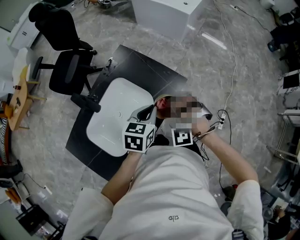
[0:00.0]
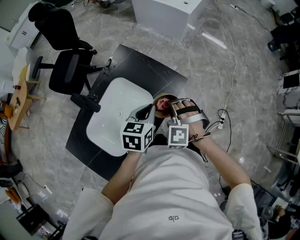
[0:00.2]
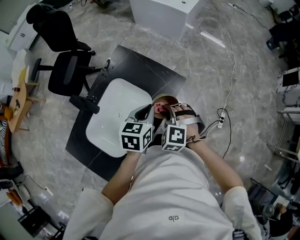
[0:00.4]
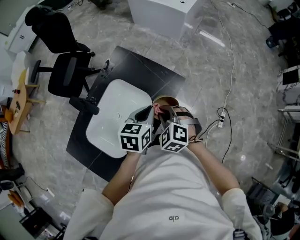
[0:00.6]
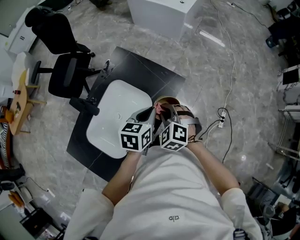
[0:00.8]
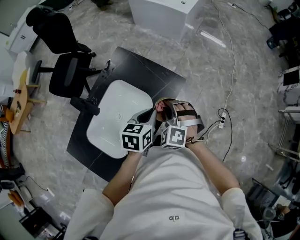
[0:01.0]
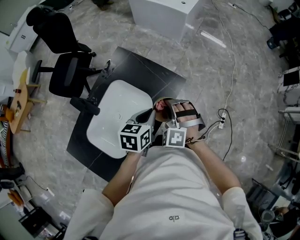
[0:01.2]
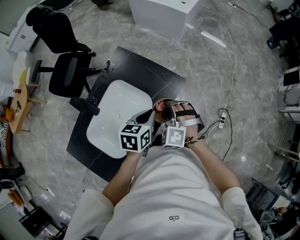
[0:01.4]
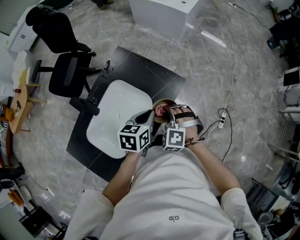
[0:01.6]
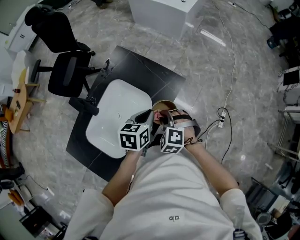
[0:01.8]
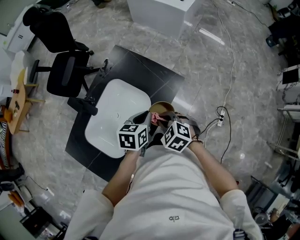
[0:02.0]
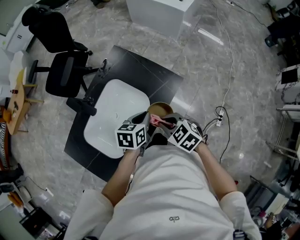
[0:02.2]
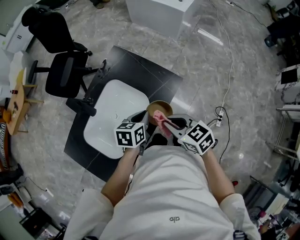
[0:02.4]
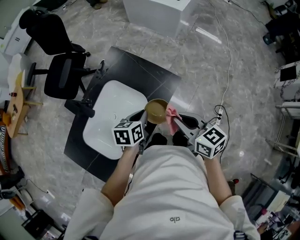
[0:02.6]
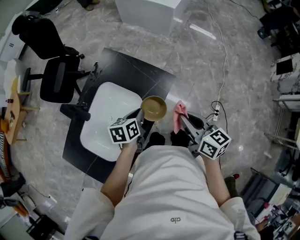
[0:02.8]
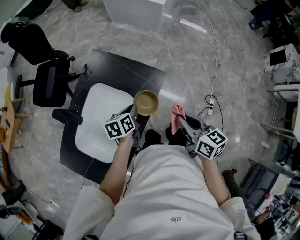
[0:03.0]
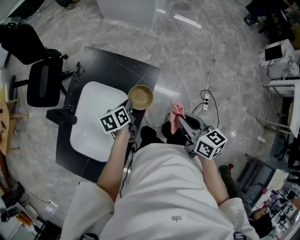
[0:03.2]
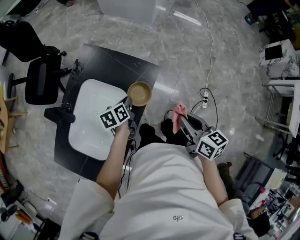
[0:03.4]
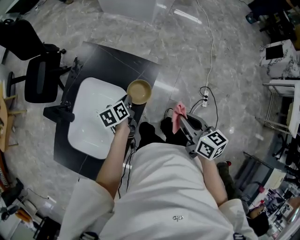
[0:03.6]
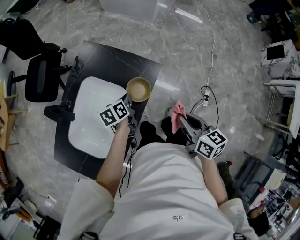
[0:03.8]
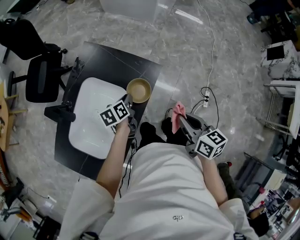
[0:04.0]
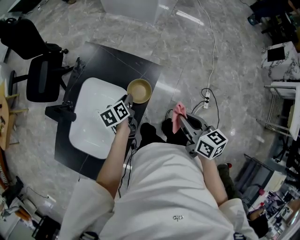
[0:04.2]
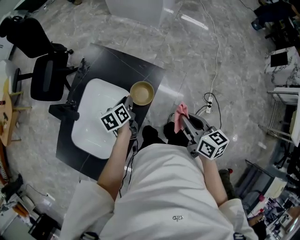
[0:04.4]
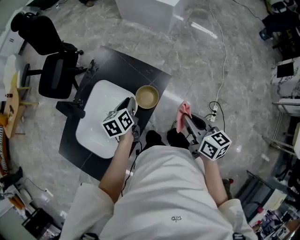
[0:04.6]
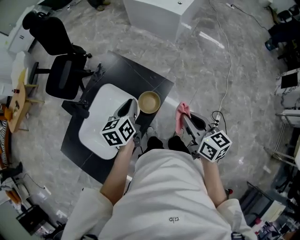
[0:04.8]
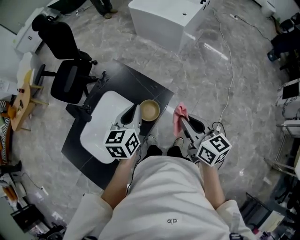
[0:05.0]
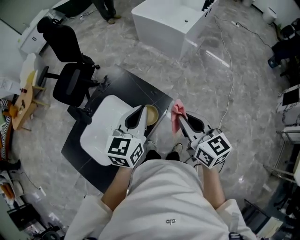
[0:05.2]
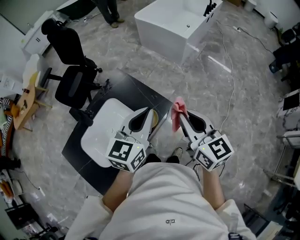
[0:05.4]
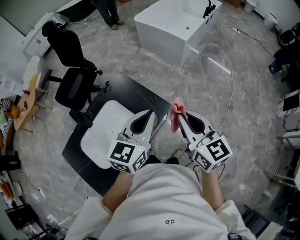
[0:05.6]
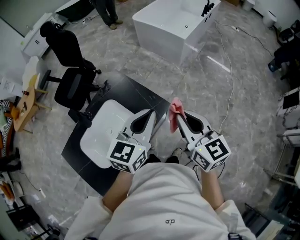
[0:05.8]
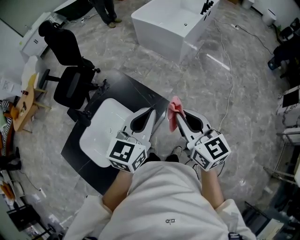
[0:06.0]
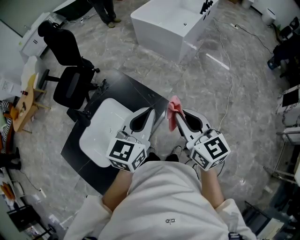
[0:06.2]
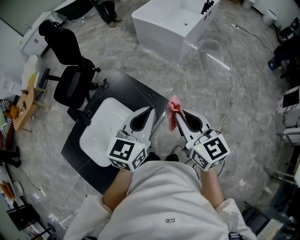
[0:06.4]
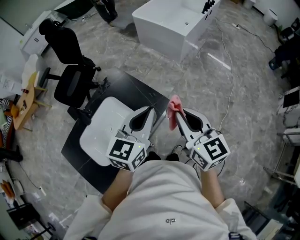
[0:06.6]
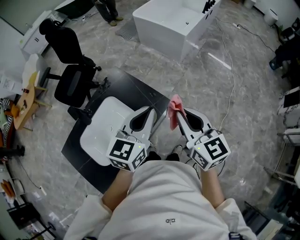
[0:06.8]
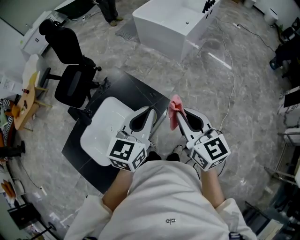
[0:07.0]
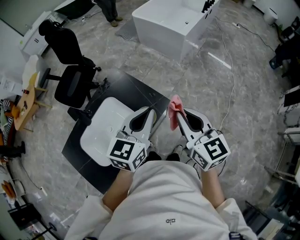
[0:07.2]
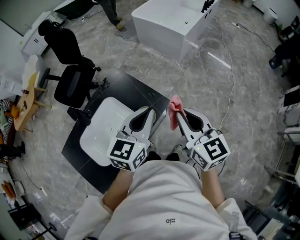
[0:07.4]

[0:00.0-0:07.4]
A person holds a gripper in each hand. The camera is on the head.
0:00.0 to 0:01.4: The right gripper rotates approximately 30 degrees.
0:01.4 to 0:03.0: The left gripper is displaced downward by roughly 10 cm. The right gripper ends up some 15 cm from where it was, and twists approximately 90 degrees clockwise, seen from behind.
0:03.0 to 0:04.4: The grippers stay close to where they were, moving slightly.
0:04.4 to 0:06.0: The left gripper is displaced upward and to the right by about 35 cm, and tilts its fingers some 30 degrees upward; the right gripper shifts approximately 20 cm upward and forward, and rotates approximately 30 degrees.
0:06.0 to 0:07.4: The grippers make only small movements.

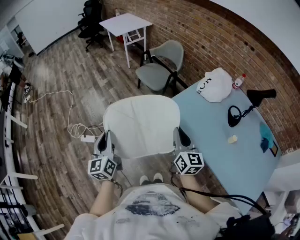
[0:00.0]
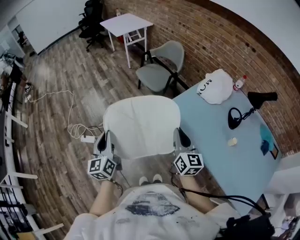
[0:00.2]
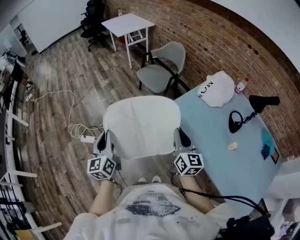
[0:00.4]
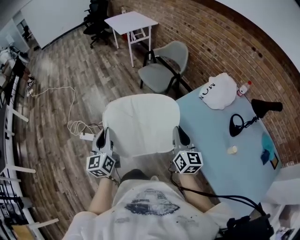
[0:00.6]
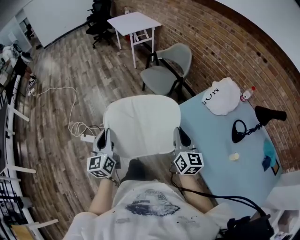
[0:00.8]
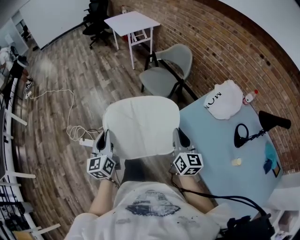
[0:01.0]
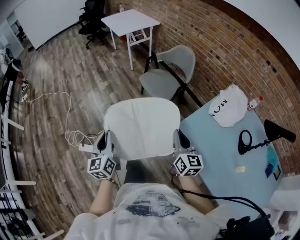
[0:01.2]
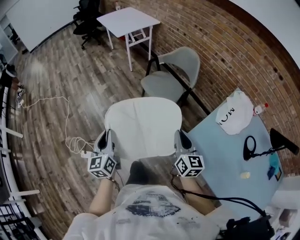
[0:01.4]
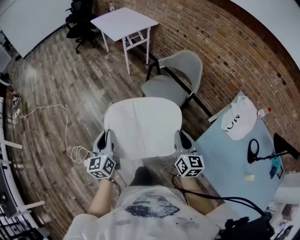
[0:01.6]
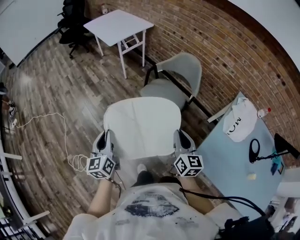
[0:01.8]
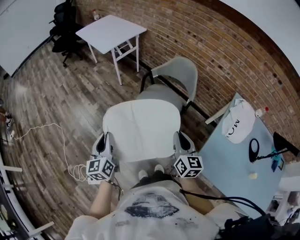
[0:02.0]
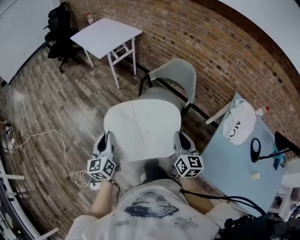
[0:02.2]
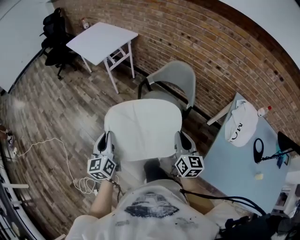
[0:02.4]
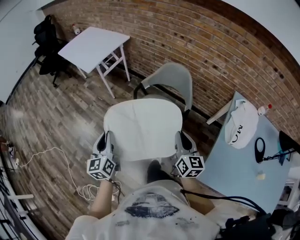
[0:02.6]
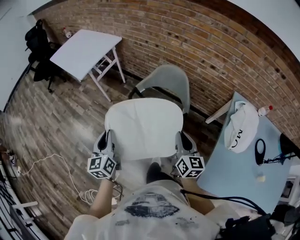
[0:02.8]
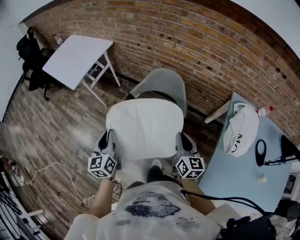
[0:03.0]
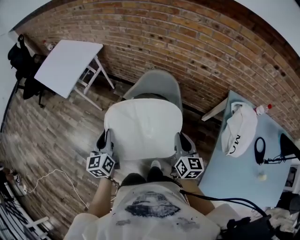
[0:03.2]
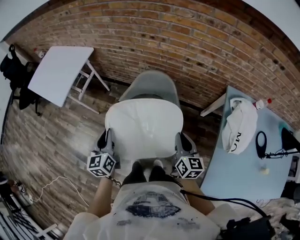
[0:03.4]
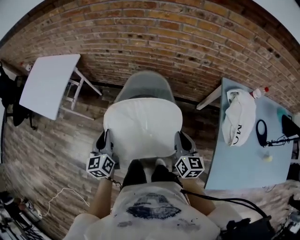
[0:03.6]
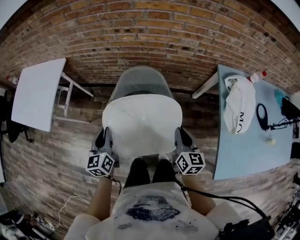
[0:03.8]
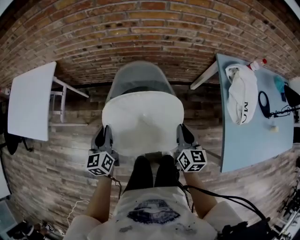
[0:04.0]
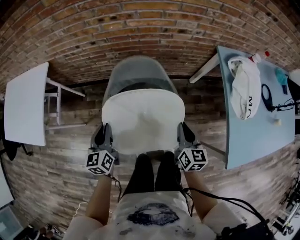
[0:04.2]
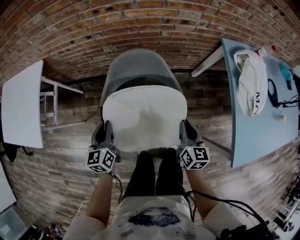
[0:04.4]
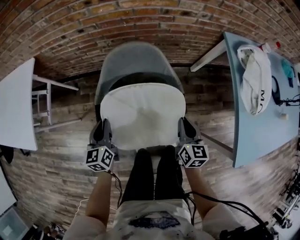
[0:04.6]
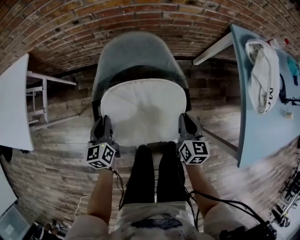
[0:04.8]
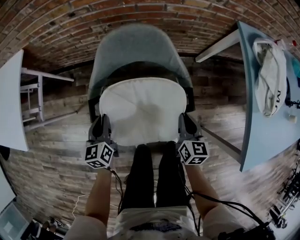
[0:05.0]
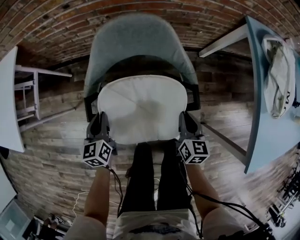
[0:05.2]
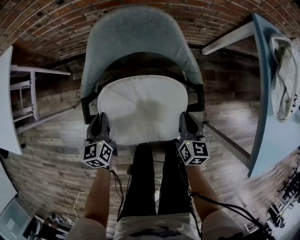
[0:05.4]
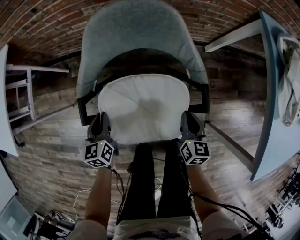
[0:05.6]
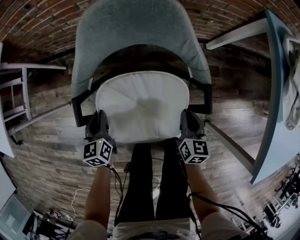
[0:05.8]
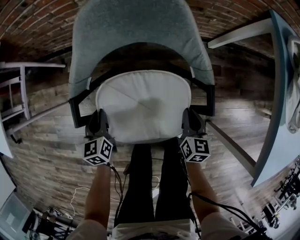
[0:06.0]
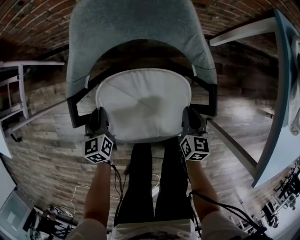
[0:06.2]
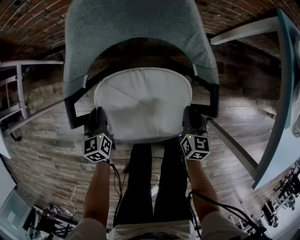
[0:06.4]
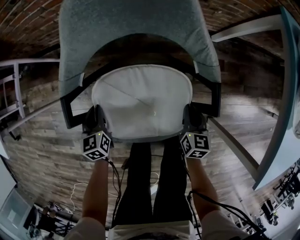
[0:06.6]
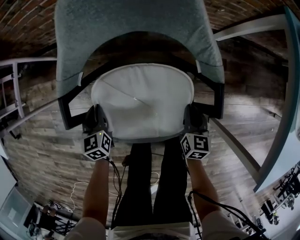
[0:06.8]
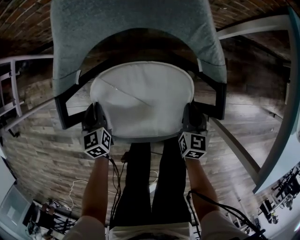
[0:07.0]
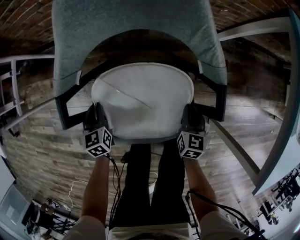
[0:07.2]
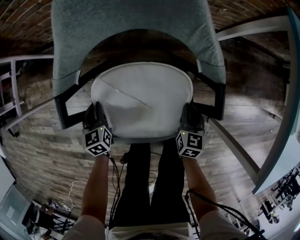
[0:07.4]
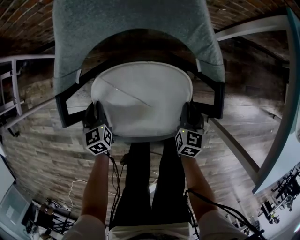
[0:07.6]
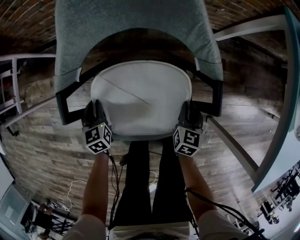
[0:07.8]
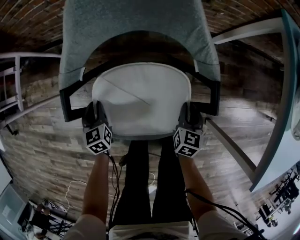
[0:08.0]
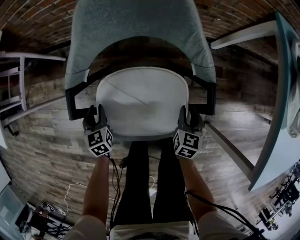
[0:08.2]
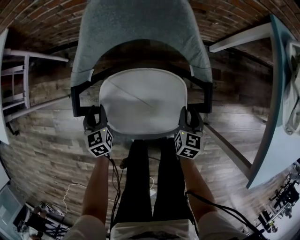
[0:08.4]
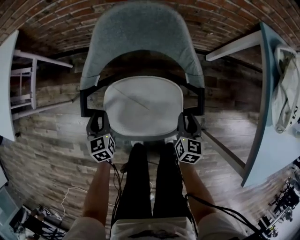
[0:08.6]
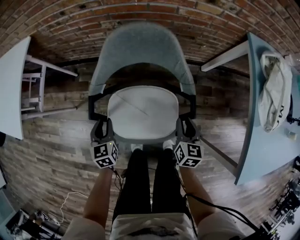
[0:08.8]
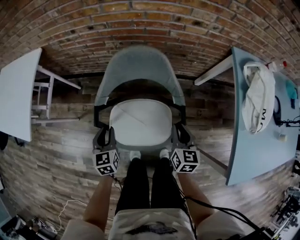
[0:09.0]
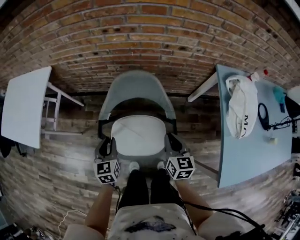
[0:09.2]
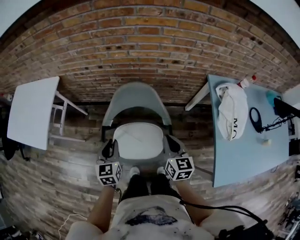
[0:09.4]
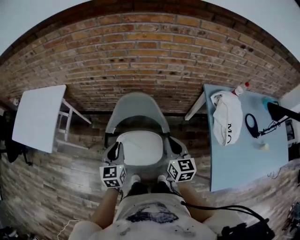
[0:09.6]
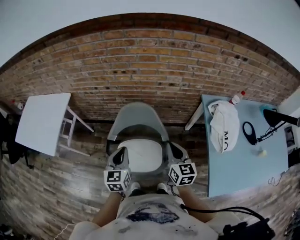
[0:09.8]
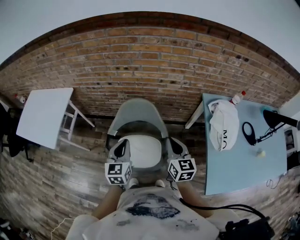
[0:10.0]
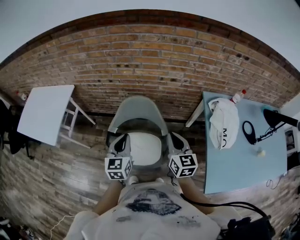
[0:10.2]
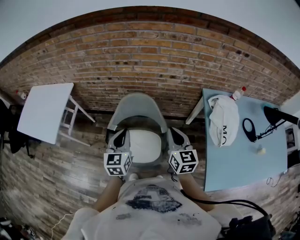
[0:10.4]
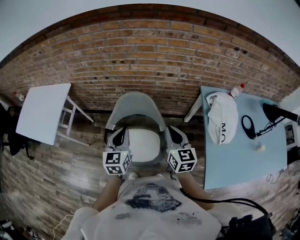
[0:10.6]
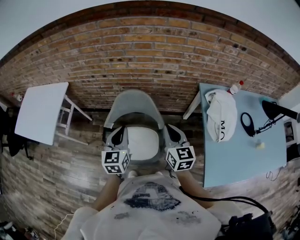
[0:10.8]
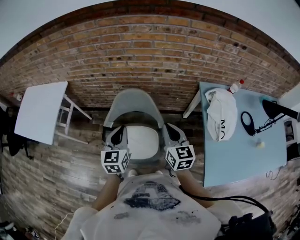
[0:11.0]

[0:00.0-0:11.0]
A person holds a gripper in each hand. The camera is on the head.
0:00.0 to 0:01.6: The two grippers travel together, forward, approximately 40 cm.
0:01.6 to 0:03.2: The right gripper shifts by approximately 40 cm, and rotates roughly 30 degrees. The left gripper moves some 50 cm, and swivels some 30 degrees.
0:03.2 to 0:04.8: Both grippers travel together downward, approximately 25 cm. The right gripper changes its angle by some 30 degrees. Meanwhile the left gripper turns by approximately 30 degrees.
0:04.8 to 0:06.2: Both grippers travel together downward, roughly 20 cm.
0:06.2 to 0:07.8: The grippers both shift downward by approximately 5 cm.
0:07.8 to 0:09.4: Both grippers travel together upward, approximately 50 cm. The left gripper swivels about 20 degrees. The right gripper changes its angle by approximately 30 degrees.
0:09.4 to 0:11.0: The right gripper moves upward, approximately 10 cm, while the left gripper shifts about 15 cm upward and to the right.

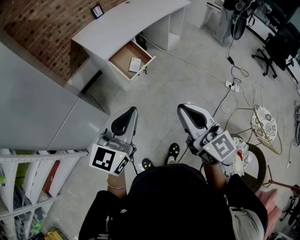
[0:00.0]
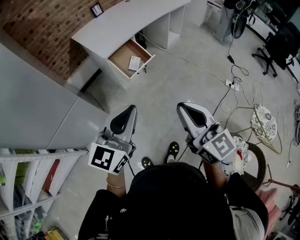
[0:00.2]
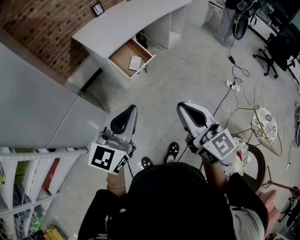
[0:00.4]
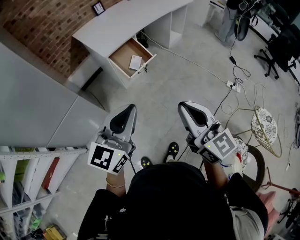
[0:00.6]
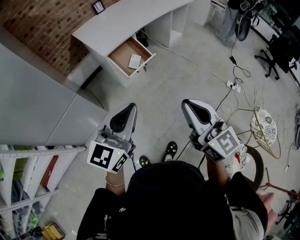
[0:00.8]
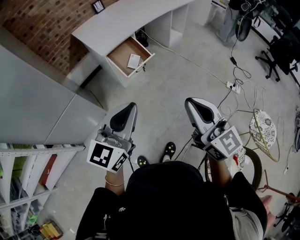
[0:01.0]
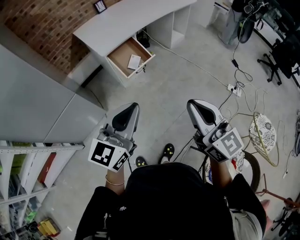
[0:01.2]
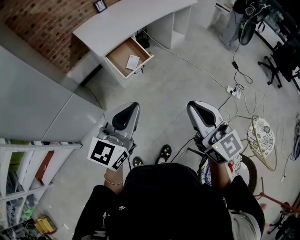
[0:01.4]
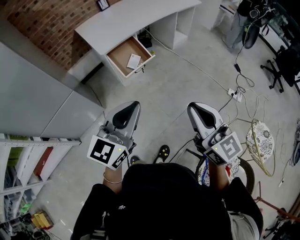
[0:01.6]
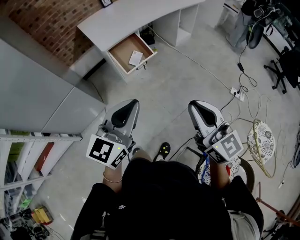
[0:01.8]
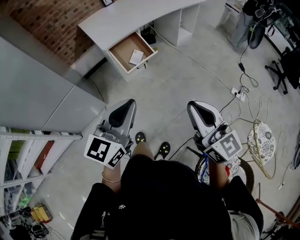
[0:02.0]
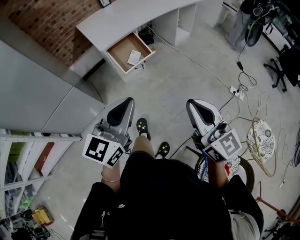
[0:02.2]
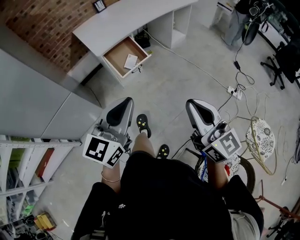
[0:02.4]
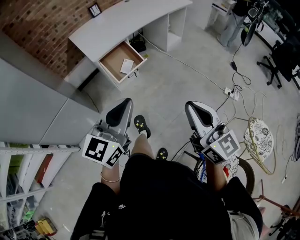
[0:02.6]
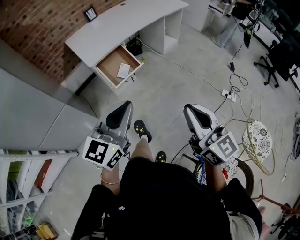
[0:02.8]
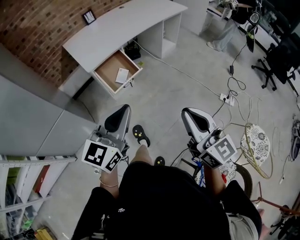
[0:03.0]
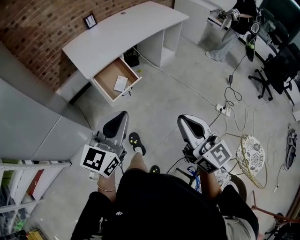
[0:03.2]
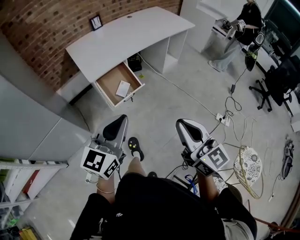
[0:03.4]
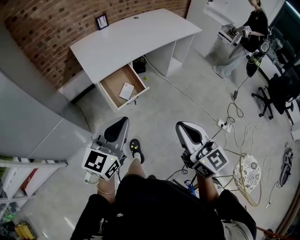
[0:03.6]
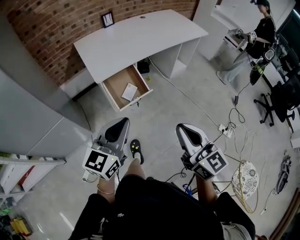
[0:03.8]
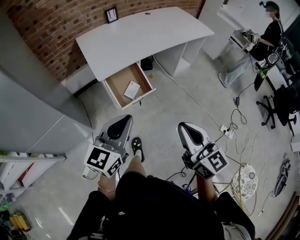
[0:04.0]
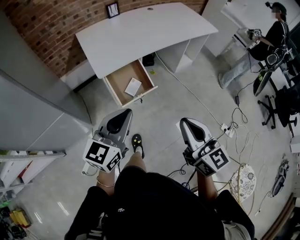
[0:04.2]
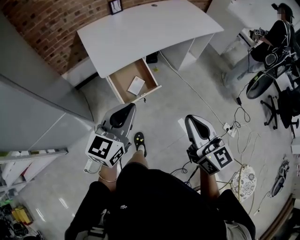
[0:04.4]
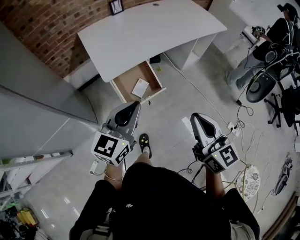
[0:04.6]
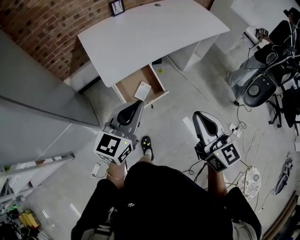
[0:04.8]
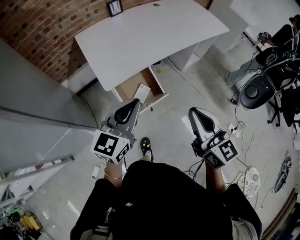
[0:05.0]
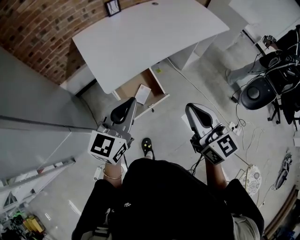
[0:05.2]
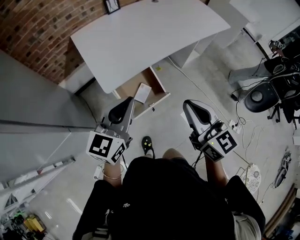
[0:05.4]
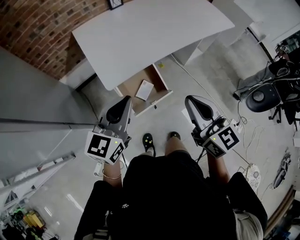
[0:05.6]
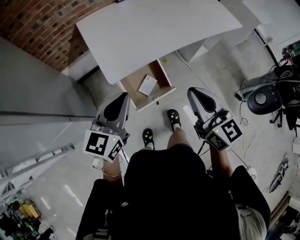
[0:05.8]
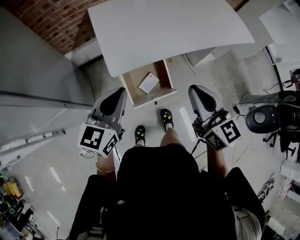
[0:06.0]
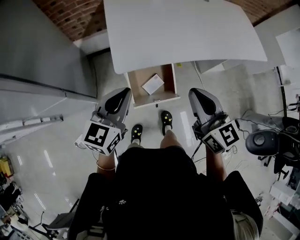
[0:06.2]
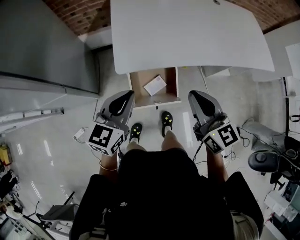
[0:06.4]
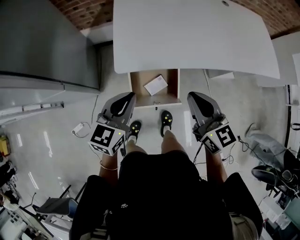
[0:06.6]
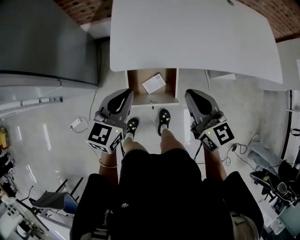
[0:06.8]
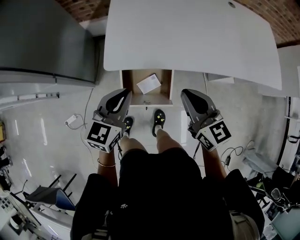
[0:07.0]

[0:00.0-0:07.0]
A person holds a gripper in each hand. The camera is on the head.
0:00.0 to 0:01.4: Both grippers travel together to the right, approximately 10 cm.
0:01.4 to 0:02.8: The right gripper goes roughly 5 cm to the right, while the left gripper moves approximately 5 cm.
0:02.8 to 0:04.2: The right gripper shifts roughly 20 cm forward; the left gripper moves forward and to the left, approximately 20 cm.
0:04.2 to 0:05.6: Both grippers travel together forward and to the left, some 20 cm.
0:05.6 to 0:07.0: The left gripper travels downward by some 10 cm, and rotates approximately 30 degrees, while the right gripper changes place by approximately 20 cm, and rotates approximately 30 degrees.
